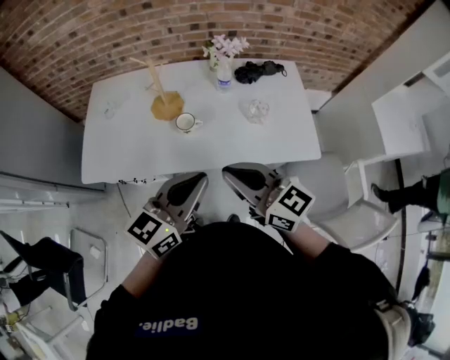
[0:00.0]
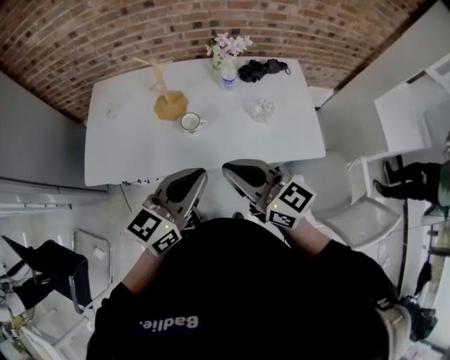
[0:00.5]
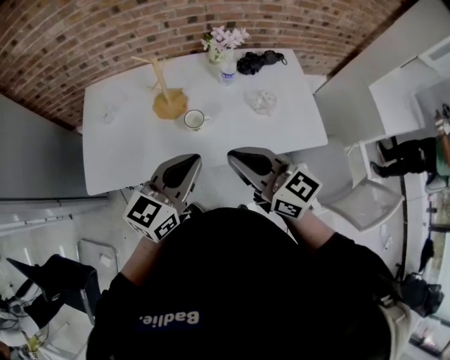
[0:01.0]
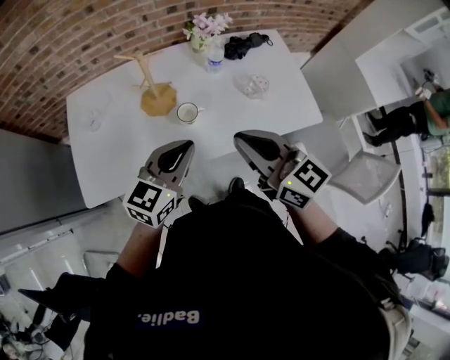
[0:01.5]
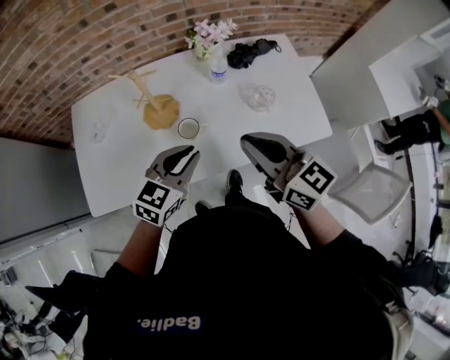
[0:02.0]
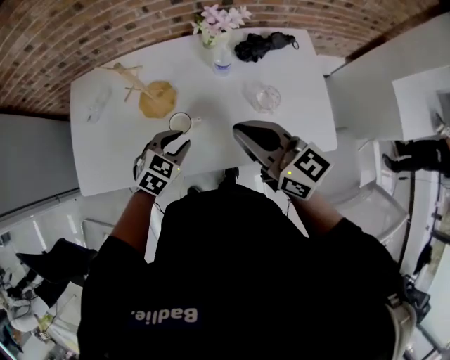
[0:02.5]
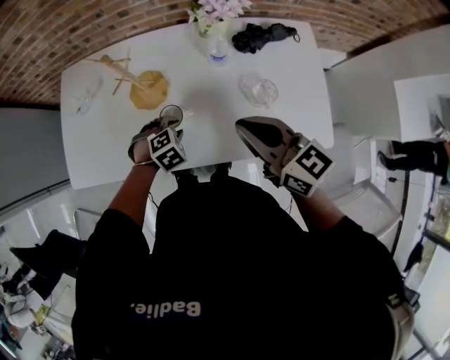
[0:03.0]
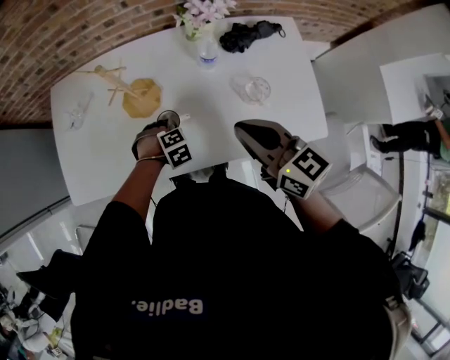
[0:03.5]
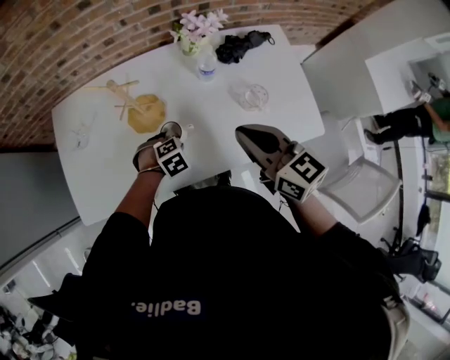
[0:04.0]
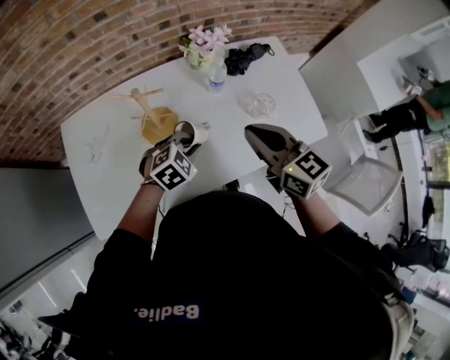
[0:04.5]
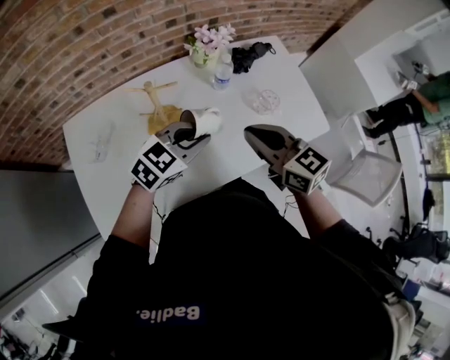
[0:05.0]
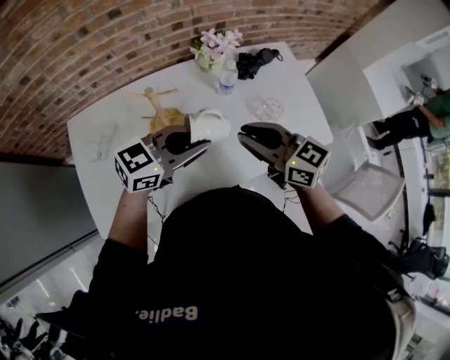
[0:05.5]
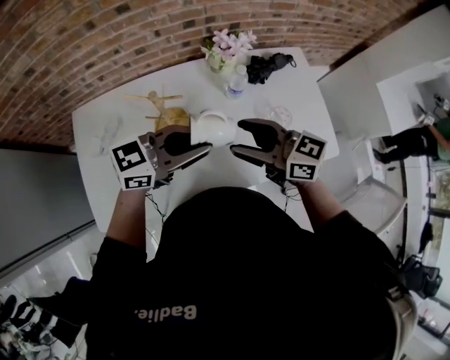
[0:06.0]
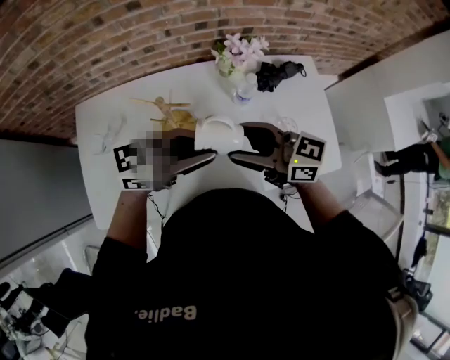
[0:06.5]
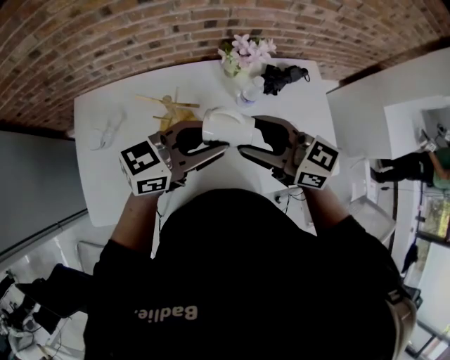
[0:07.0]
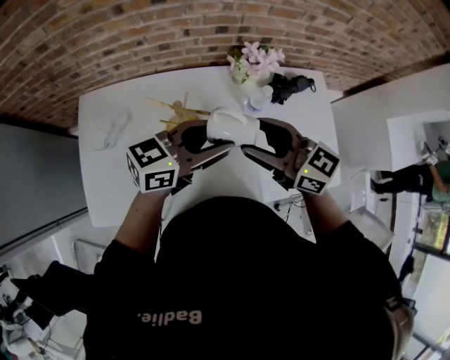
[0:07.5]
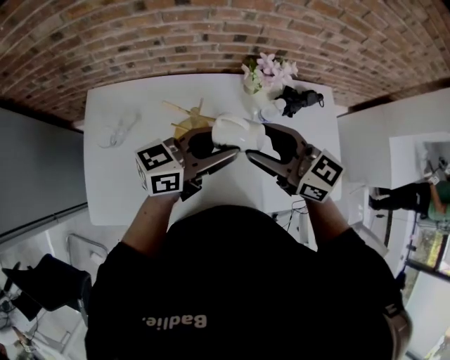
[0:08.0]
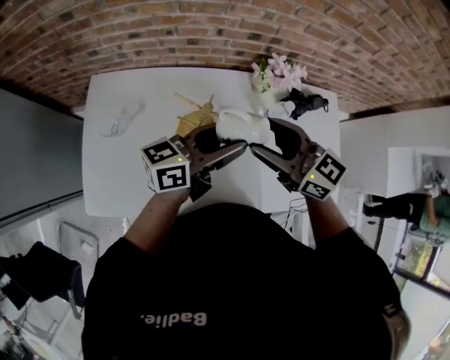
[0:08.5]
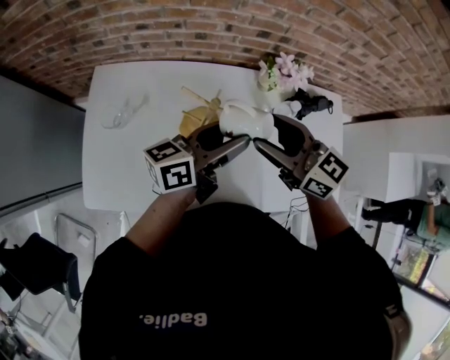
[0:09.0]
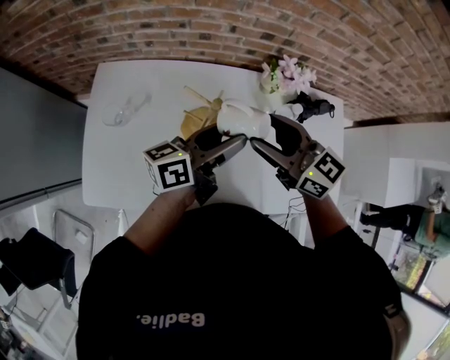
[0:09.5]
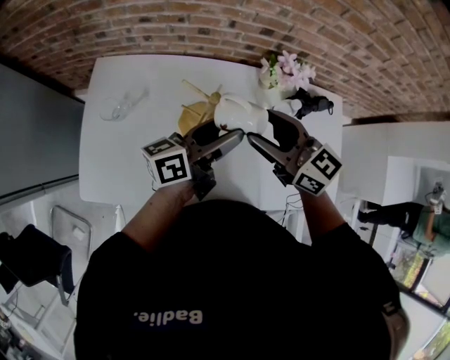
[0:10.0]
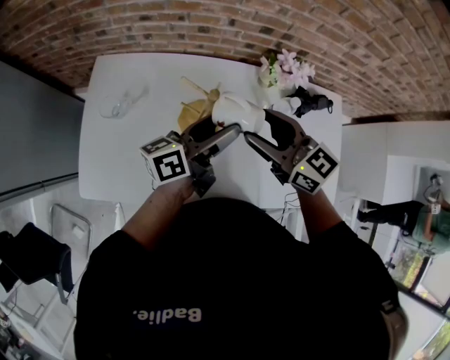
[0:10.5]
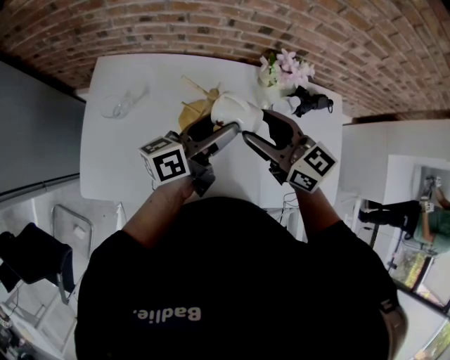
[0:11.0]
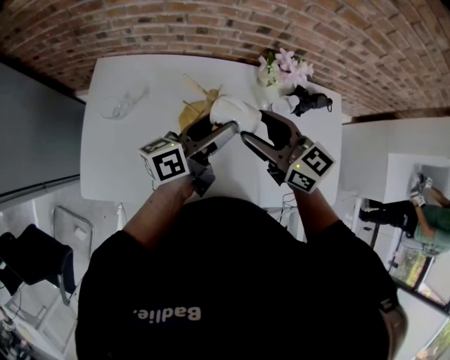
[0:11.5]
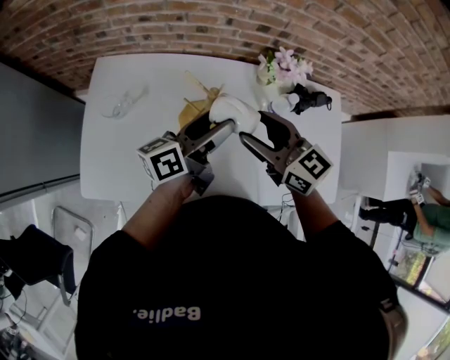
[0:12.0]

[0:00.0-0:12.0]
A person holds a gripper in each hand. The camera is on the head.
0:00.0 to 0:02.0: The left gripper shifts some 20 cm forward, downward and to the left, and changes its angle by approximately 30 degrees, while the right gripper heads forward, covering some 10 cm.
0:02.0 to 0:04.0: The right gripper ends up approximately 10 cm from where it was. The left gripper heads downward, covering approximately 25 cm, and points its fingers roughly 50 degrees further downward.
0:04.0 to 0:06.0: The left gripper moves upward, approximately 30 cm, and angles its fingers upward, by roughly 70 degrees; the right gripper moves some 10 cm, changes its angle by roughly 20 degrees, and opens.
0:06.0 to 0:08.0: The left gripper ends up roughly 10 cm from where it was, swivels some 30 degrees, and opens. The right gripper shifts by roughly 10 cm.
0:08.0 to 0:10.0: The left gripper moves roughly 5 cm, and turns by about 30 degrees.
0:10.0 to 0:12.0: The grippers stay close to where they were, moving slightly.

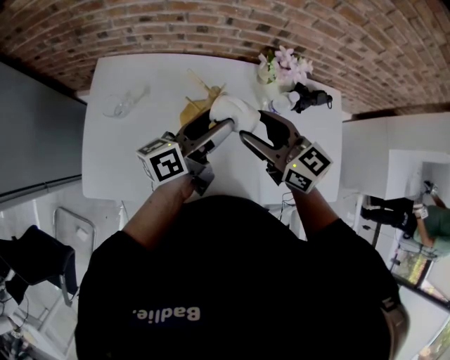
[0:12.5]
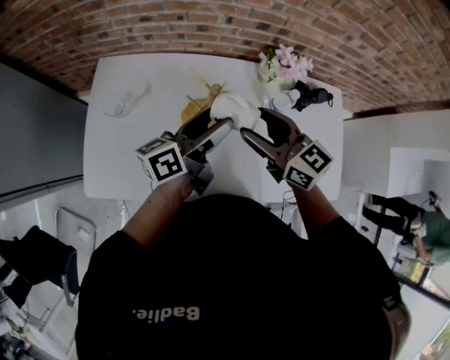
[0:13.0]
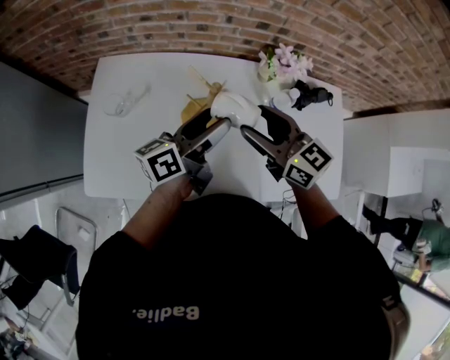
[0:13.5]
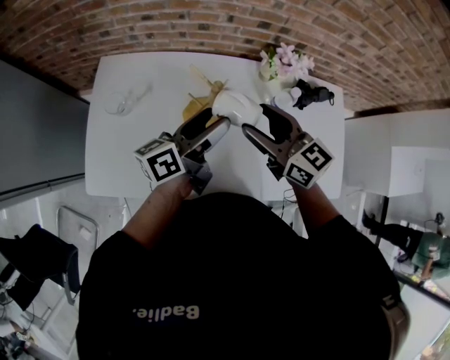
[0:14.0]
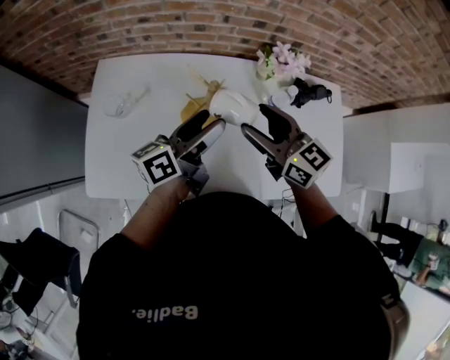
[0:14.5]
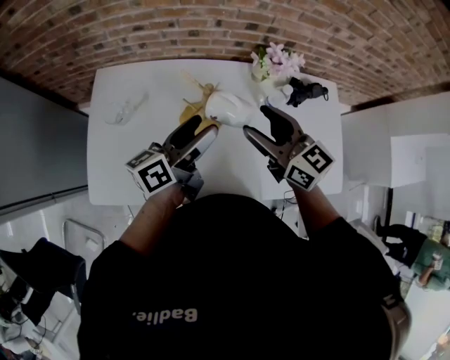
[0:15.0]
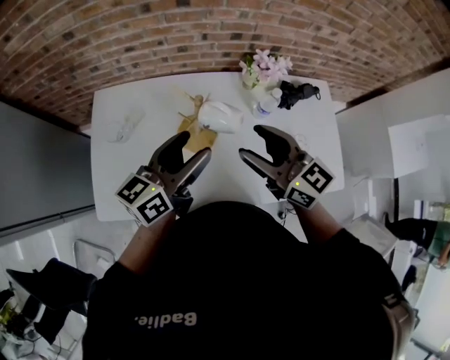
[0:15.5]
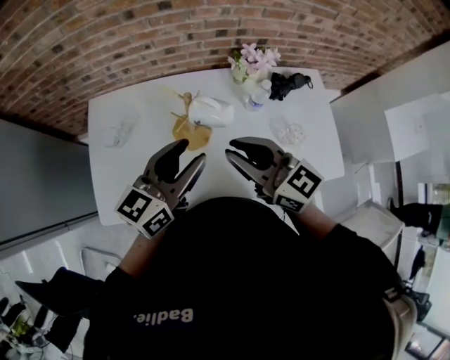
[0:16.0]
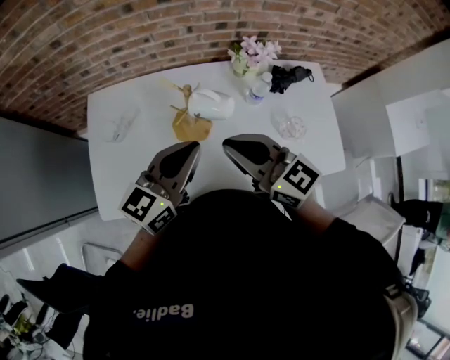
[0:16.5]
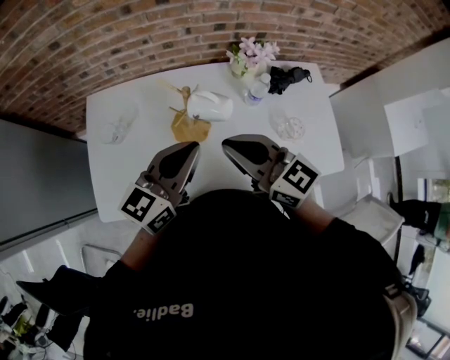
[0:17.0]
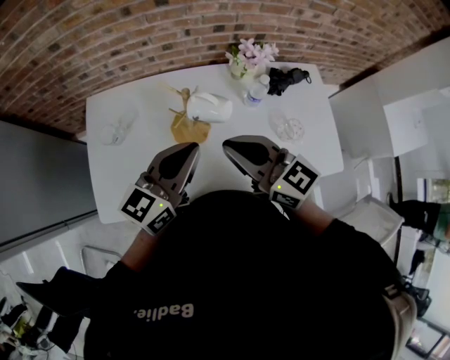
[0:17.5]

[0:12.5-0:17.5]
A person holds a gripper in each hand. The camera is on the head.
0:12.5 to 0:15.0: The grippers stay close to where they were, moving slightly.
0:15.0 to 0:17.5: The right gripper is displaced backward by some 10 cm, and closes its fingers. Meanwhile the left gripper moves backward and upward, about 10 cm, changes its angle by roughly 40 degrees, and closes its fingers.

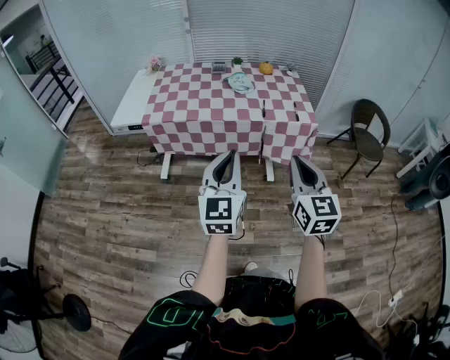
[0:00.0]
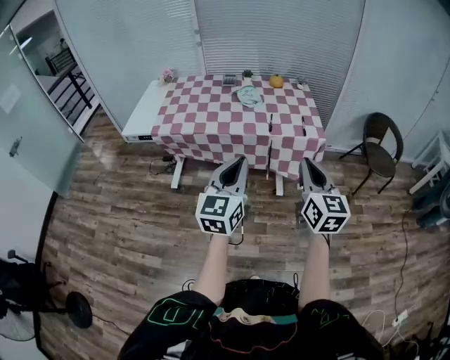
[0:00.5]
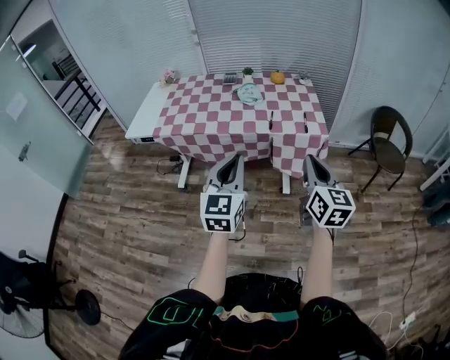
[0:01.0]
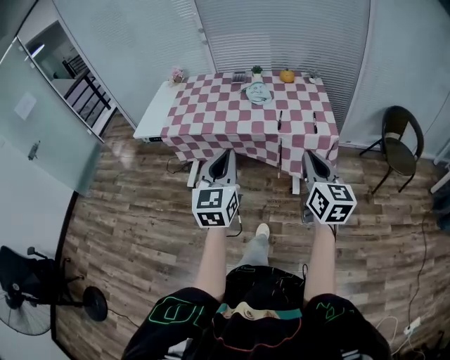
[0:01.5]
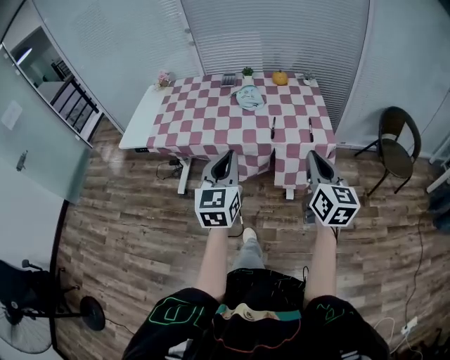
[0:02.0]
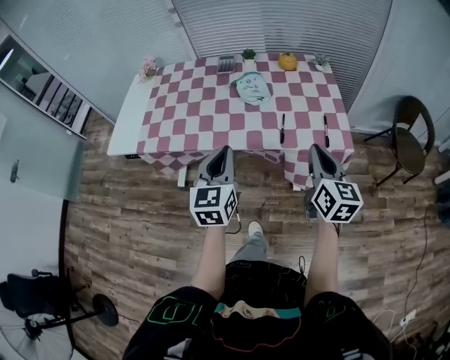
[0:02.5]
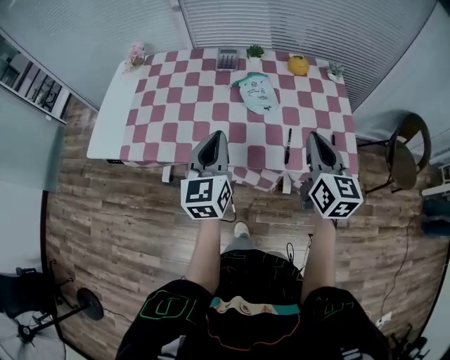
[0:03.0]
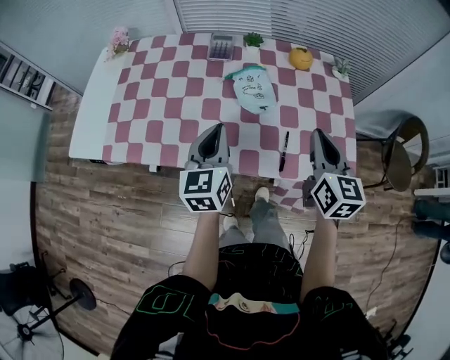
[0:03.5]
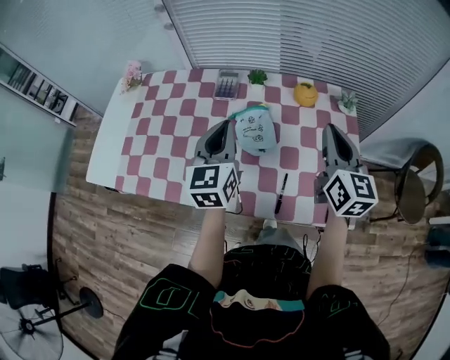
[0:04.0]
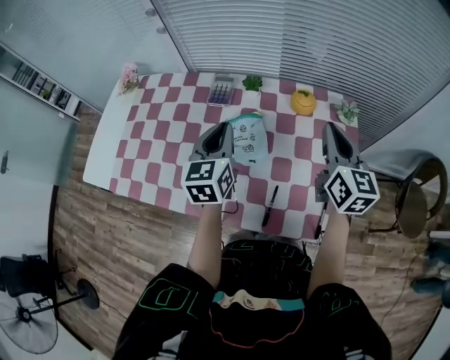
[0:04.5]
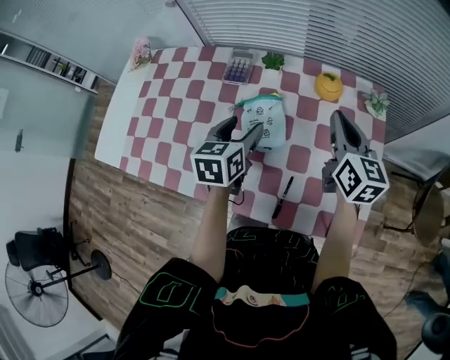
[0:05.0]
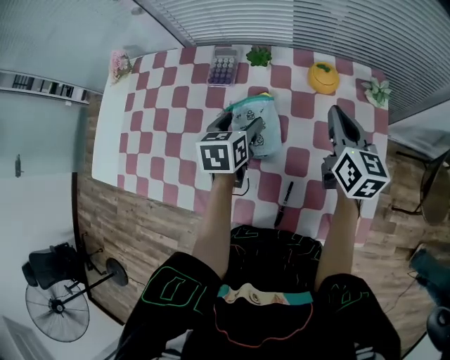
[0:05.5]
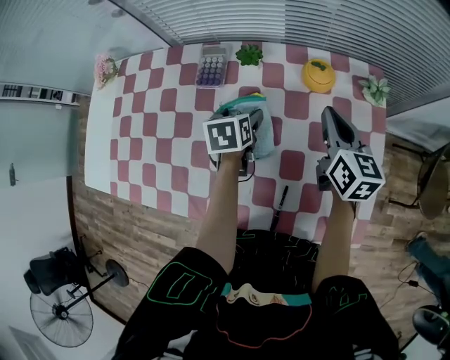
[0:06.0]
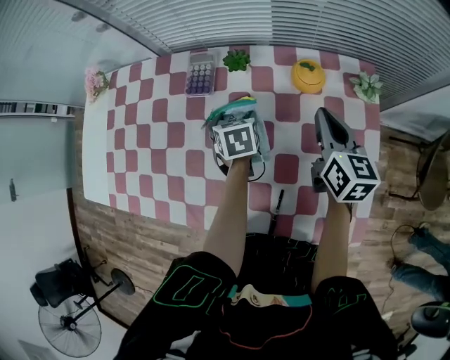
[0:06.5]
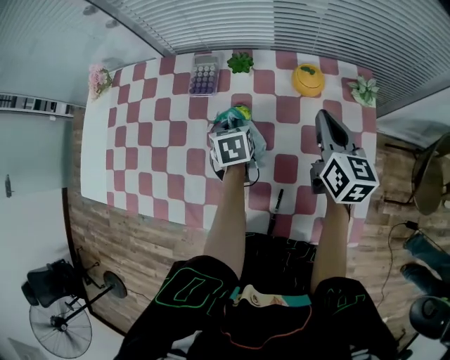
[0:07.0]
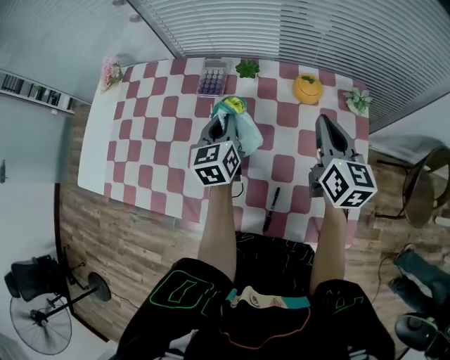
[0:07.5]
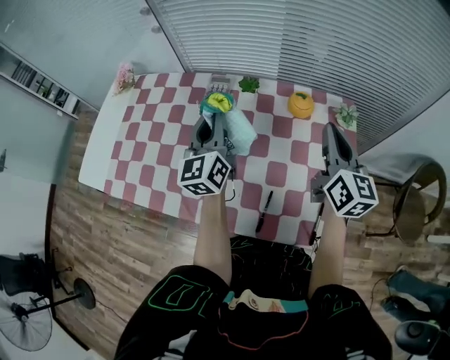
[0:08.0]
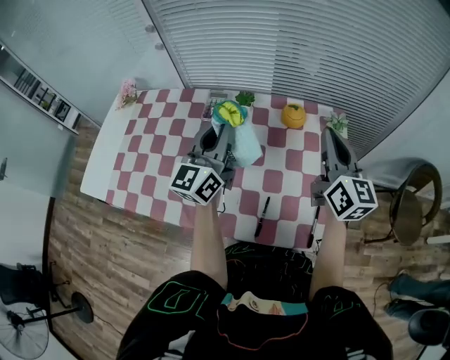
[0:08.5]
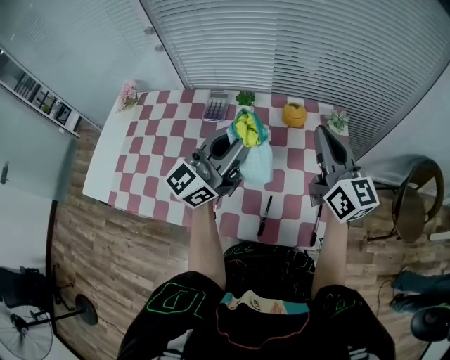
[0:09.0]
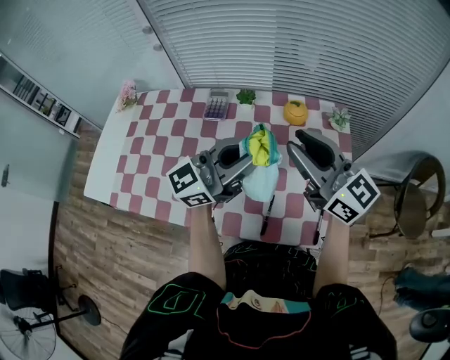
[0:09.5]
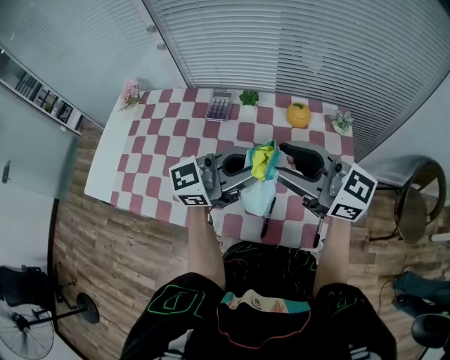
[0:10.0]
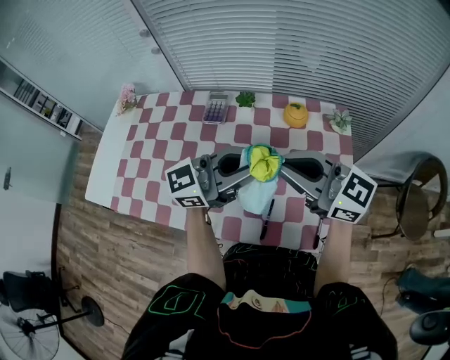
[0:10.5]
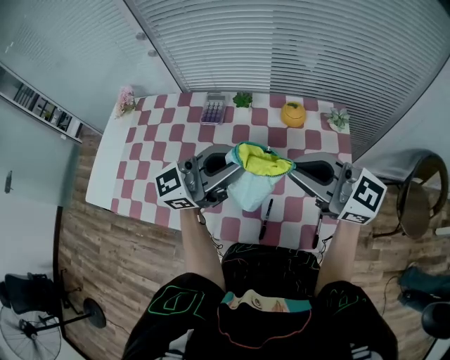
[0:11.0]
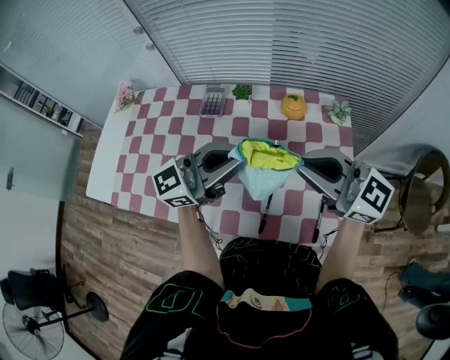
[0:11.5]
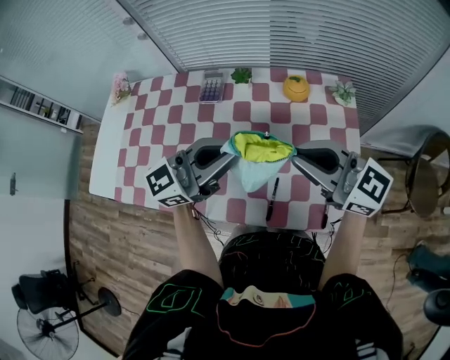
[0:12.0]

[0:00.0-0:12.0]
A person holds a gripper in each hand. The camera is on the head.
0:00.0 to 0:02.0: Both grippers move forward and to the right, about 20 cm.
0:02.0 to 0:04.0: The two grippers travel together, forward, approximately 50 cm.
0:04.0 to 0:06.0: The two grippers go some 25 cm downward and forward. The left gripper tilts its fingers roughly 50 degrees downward, and opens.
0:06.0 to 0:08.0: The right gripper moves upward and backward, roughly 15 cm, while the left gripper heads upward, covering roughly 20 cm, points its fingers approximately 60 degrees further upward, and closes.
0:08.0 to 0:10.0: The left gripper ends up approximately 20 cm from where it was, and swivels roughly 70 degrees, while the right gripper changes place by about 20 cm, swivels some 50 degrees, and opens its fingers.
0:10.0 to 0:12.0: The right gripper moves approximately 5 cm, and closes up.
